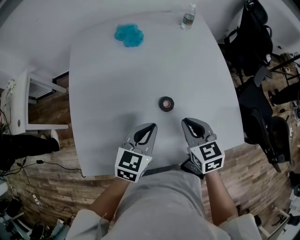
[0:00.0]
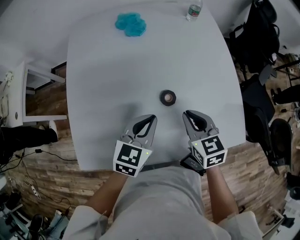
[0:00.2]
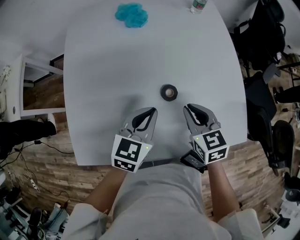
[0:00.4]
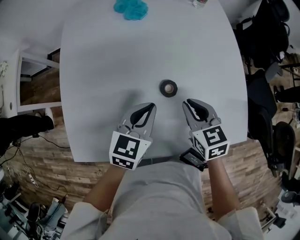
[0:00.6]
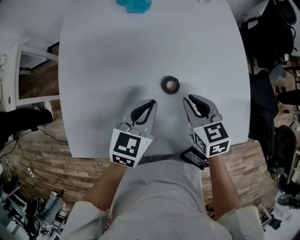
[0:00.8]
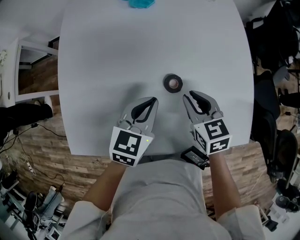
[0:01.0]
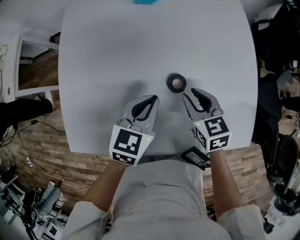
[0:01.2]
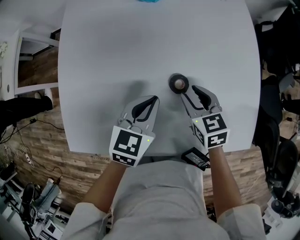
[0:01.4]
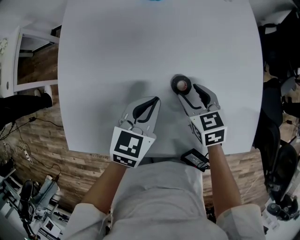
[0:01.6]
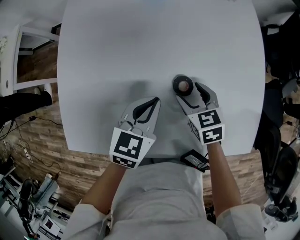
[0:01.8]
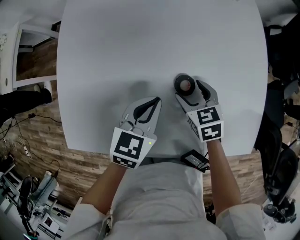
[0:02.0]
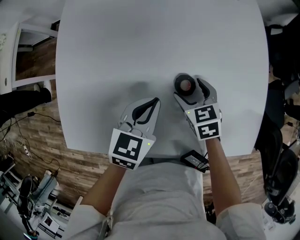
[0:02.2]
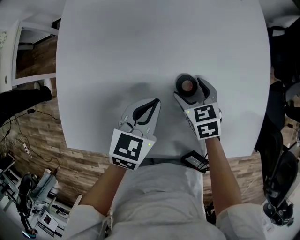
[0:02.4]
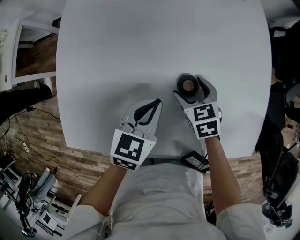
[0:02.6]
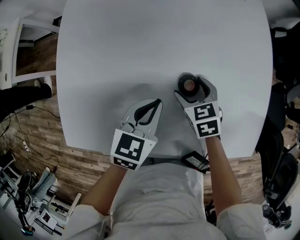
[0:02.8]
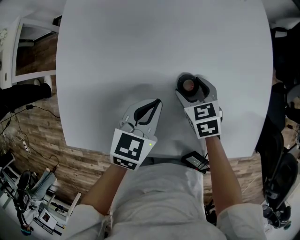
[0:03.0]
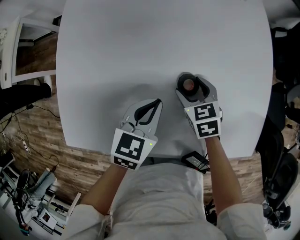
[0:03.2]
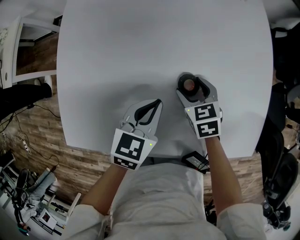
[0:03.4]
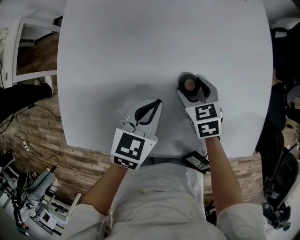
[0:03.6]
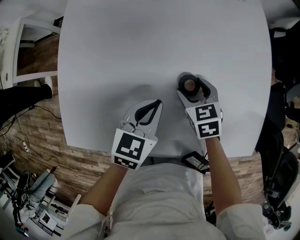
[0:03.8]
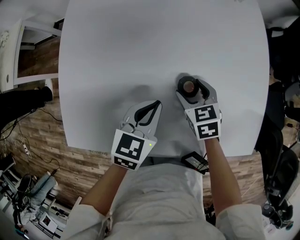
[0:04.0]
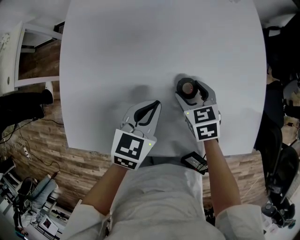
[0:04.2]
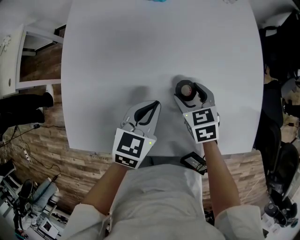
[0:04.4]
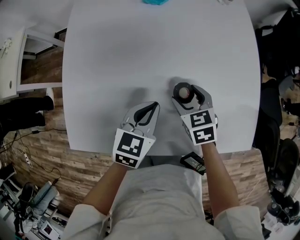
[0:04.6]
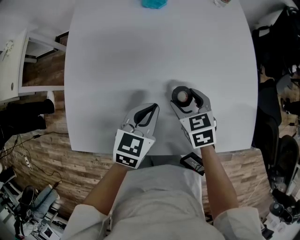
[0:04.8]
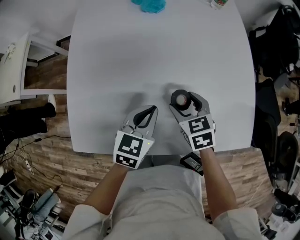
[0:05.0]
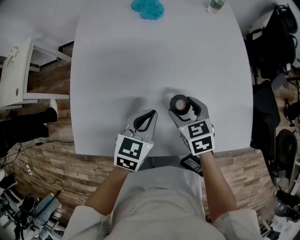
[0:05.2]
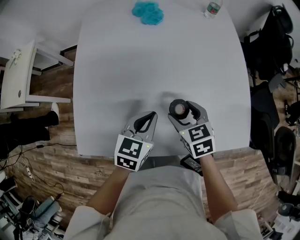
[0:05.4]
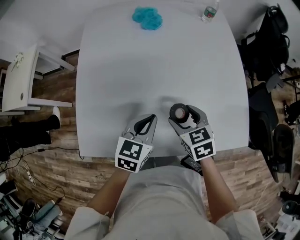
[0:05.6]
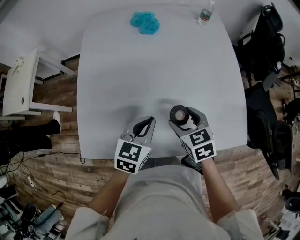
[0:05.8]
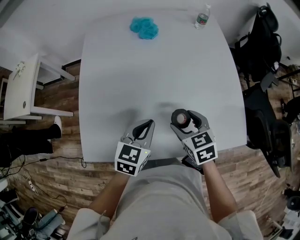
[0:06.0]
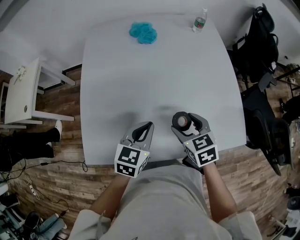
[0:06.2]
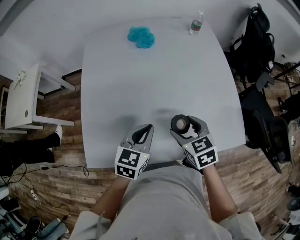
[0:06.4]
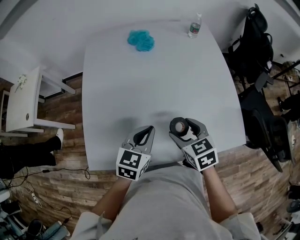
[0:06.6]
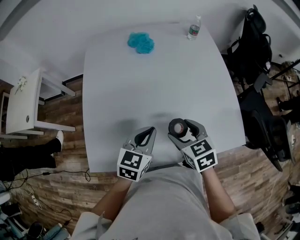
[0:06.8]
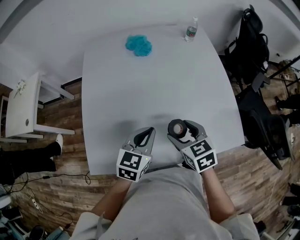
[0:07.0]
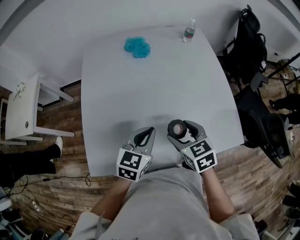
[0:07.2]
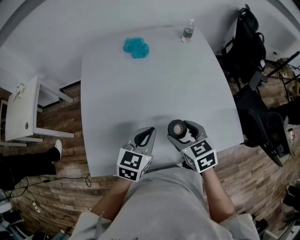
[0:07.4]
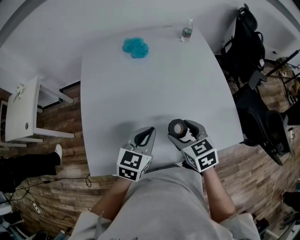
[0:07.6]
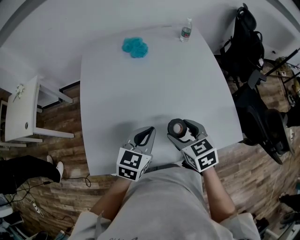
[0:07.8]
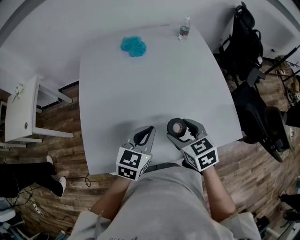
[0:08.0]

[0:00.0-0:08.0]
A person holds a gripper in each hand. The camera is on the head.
0:00.0 to 0:01.6: The left gripper travels downward and forward by roughly 10 cm, while the right gripper goes about 15 cm downward and forward, and opens its fingers.
0:01.6 to 0:03.2: The right gripper changes place by roughly 5 cm.
0:03.2 to 0:04.8: The right gripper is displaced upward by some 5 cm.
0:04.8 to 0:06.4: The grippers both shift upward and backward by roughly 10 cm.
0:06.4 to 0:08.0: The grippers move only a little.

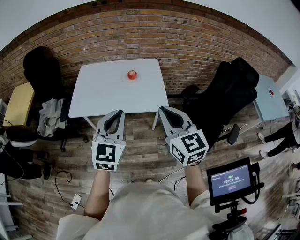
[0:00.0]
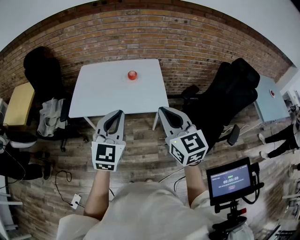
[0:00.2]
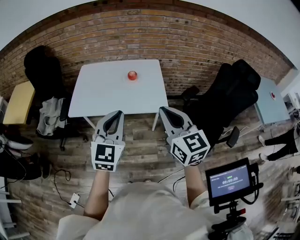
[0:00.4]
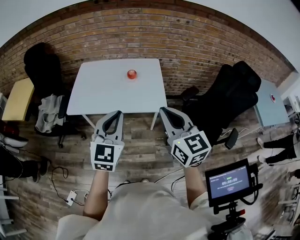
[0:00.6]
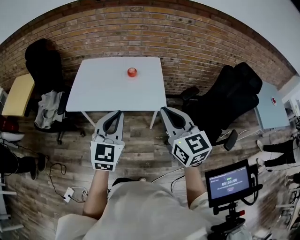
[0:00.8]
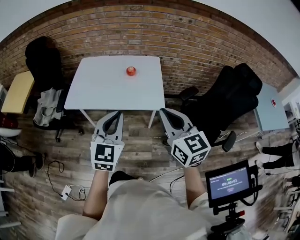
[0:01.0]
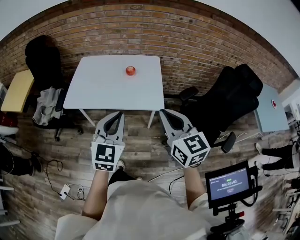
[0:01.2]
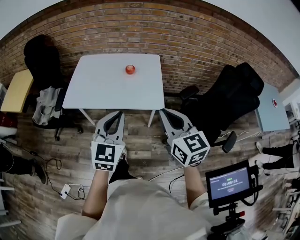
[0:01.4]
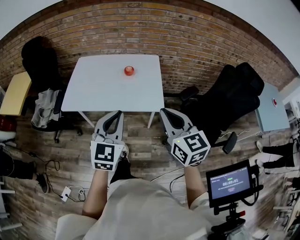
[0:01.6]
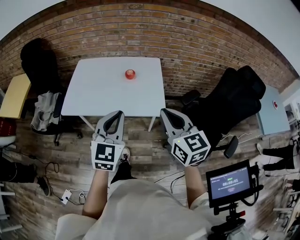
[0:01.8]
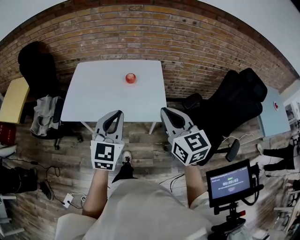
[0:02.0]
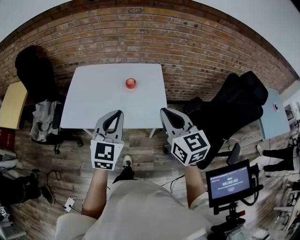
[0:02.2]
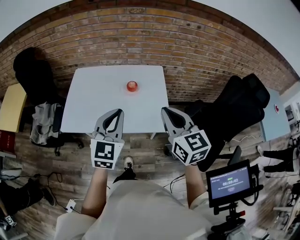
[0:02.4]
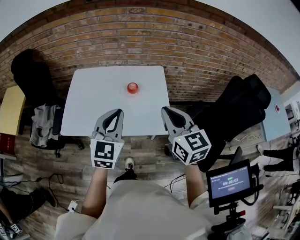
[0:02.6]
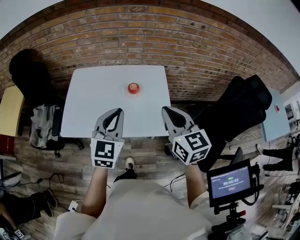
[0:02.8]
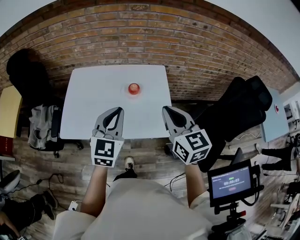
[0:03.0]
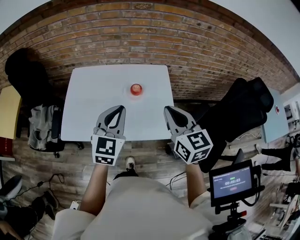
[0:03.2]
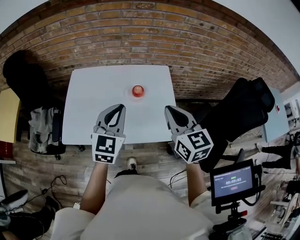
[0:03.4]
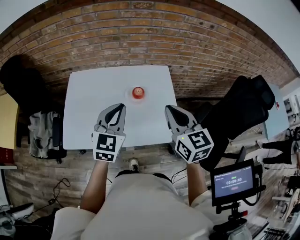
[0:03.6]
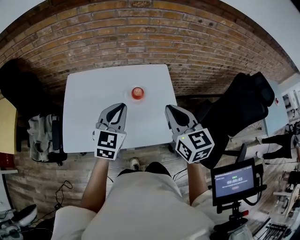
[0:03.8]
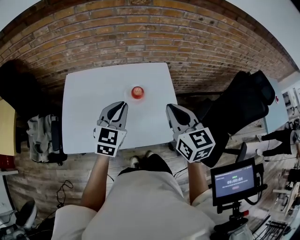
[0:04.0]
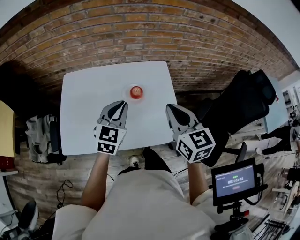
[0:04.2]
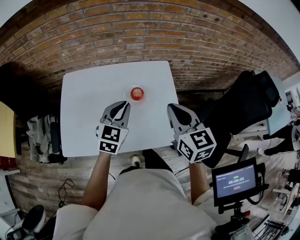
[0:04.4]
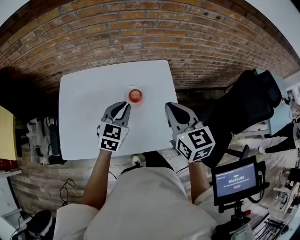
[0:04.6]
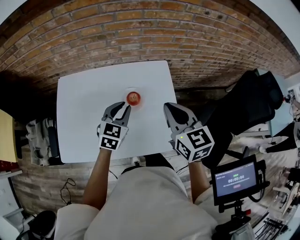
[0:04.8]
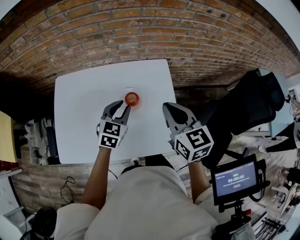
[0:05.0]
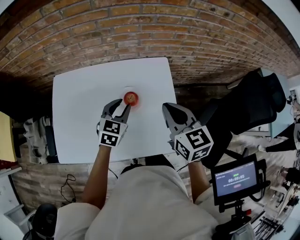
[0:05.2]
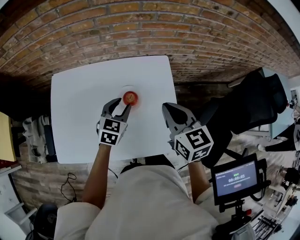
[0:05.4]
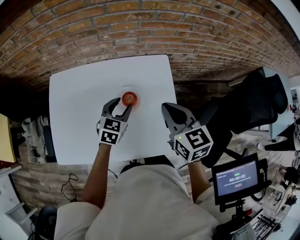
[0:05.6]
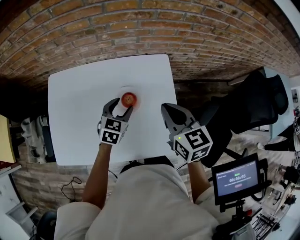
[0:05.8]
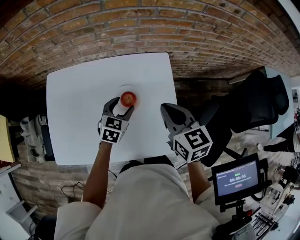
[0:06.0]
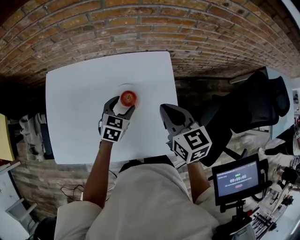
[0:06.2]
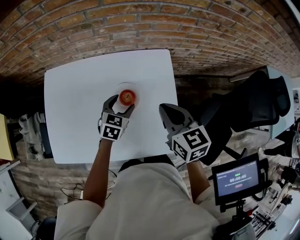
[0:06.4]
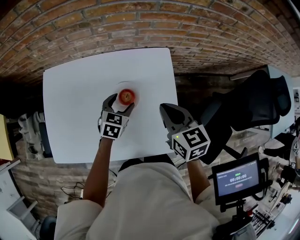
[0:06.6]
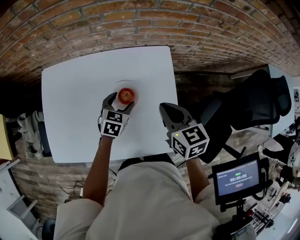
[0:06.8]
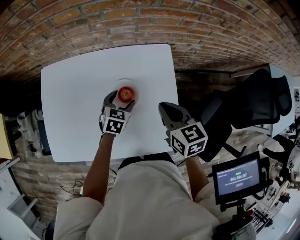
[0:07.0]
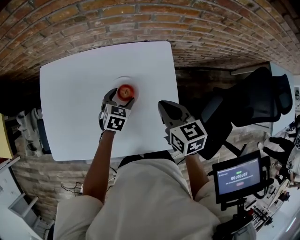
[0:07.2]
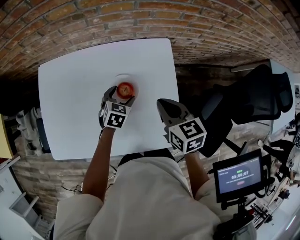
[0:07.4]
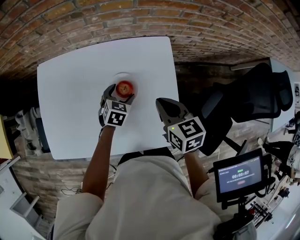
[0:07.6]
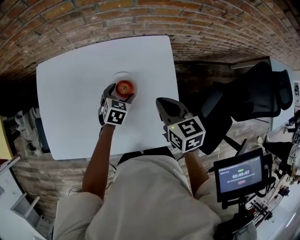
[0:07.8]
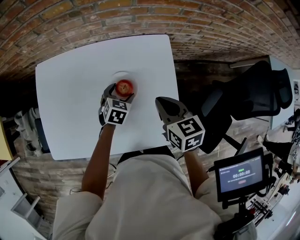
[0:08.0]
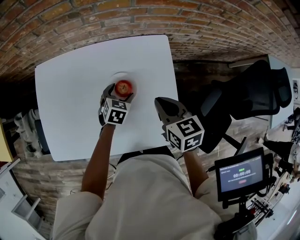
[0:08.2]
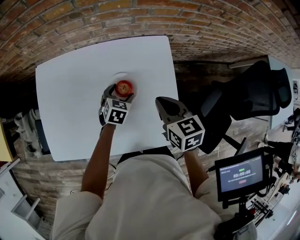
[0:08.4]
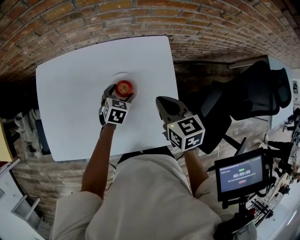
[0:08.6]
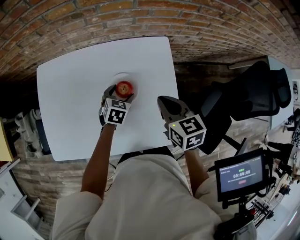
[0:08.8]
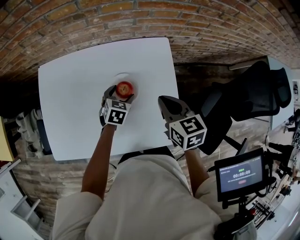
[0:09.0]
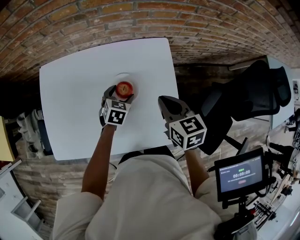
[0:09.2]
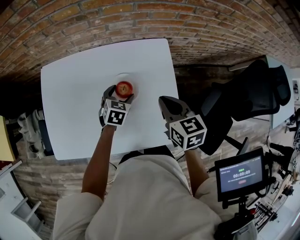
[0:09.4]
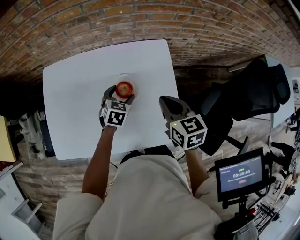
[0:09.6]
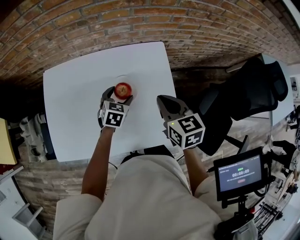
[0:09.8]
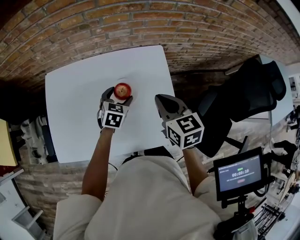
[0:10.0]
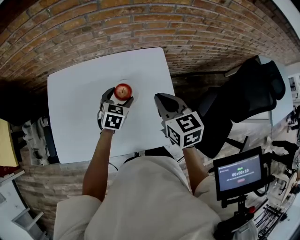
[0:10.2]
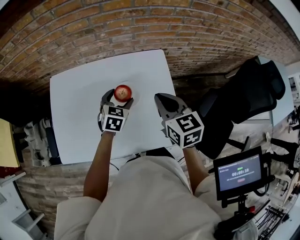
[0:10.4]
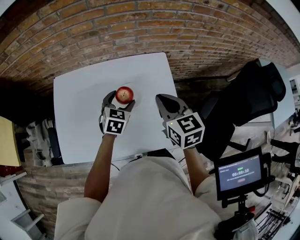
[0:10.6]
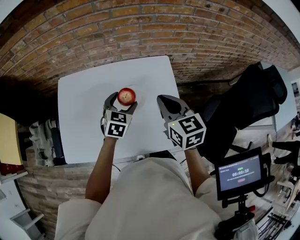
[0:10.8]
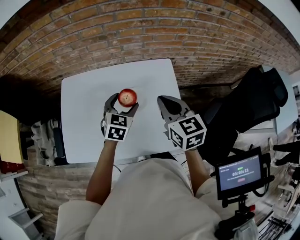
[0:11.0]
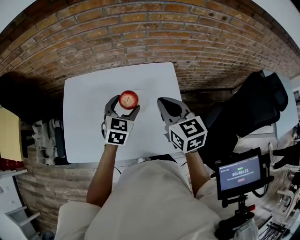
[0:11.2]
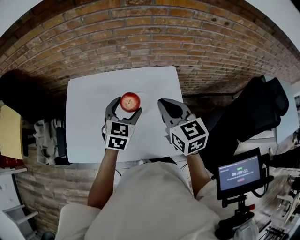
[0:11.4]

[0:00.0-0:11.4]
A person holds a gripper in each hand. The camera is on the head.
0:00.0 to 0:01.4: The grippers both shift to the right by some 5 cm.
0:01.4 to 0:02.8: Both grippers travel together forward, roughly 20 cm.
0:02.8 to 0:04.2: The right gripper goes approximately 10 cm forward; the left gripper heads forward and downward, covering roughly 15 cm.
0:04.2 to 0:05.6: The left gripper moves downward and forward, about 20 cm, and opens. The right gripper travels forward and downward by roughly 15 cm.
0:05.6 to 0:07.2: The two grippers go approximately 10 cm downward. The left gripper opens.
0:07.2 to 0:08.6: The grippers stay close to where they were, moving slightly.
0:08.6 to 0:10.0: Both grippers travel together upward, approximately 5 cm.
0:10.0 to 0:11.4: The right gripper goes approximately 10 cm upward; the left gripper moves upward, some 15 cm.

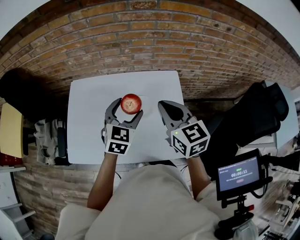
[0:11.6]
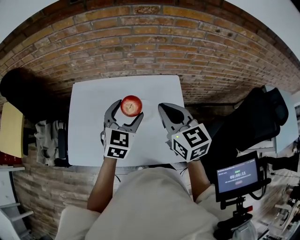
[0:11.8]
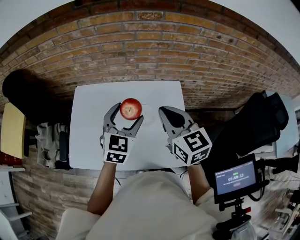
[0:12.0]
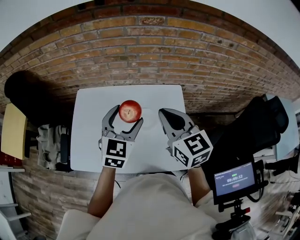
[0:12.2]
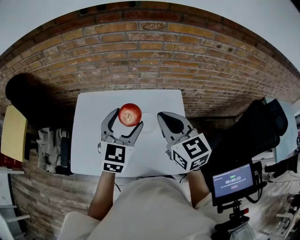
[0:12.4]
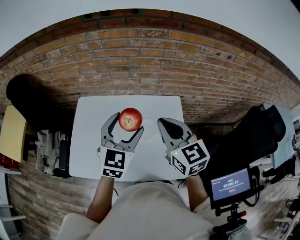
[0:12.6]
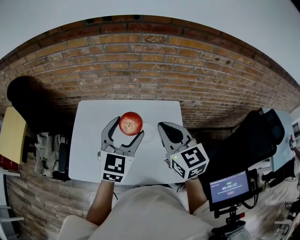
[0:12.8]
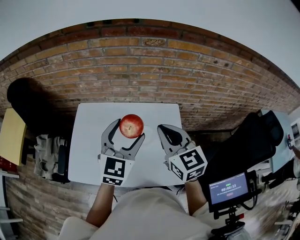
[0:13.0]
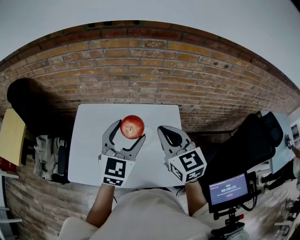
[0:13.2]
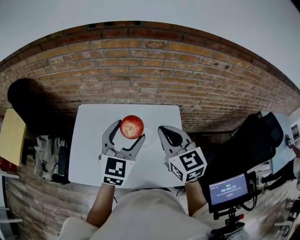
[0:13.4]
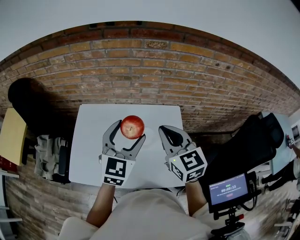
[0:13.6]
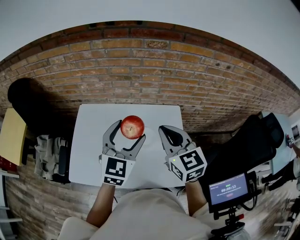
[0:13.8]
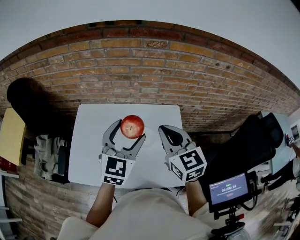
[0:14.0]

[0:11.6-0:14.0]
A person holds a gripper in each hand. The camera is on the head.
0:11.6 to 0:12.8: The left gripper travels upward by roughly 10 cm. The right gripper is displaced upward by roughly 5 cm.
0:12.8 to 0:14.0: The two grippers keep their place.

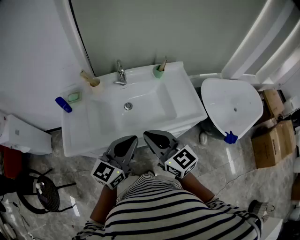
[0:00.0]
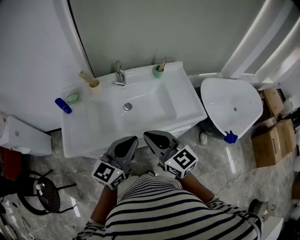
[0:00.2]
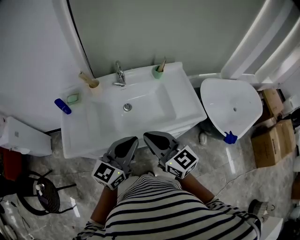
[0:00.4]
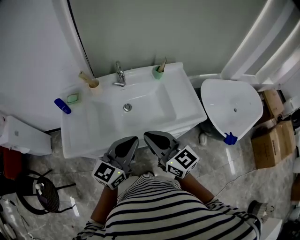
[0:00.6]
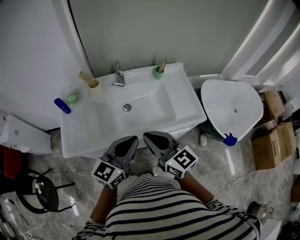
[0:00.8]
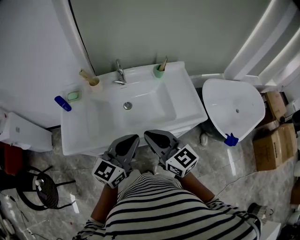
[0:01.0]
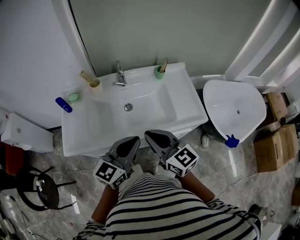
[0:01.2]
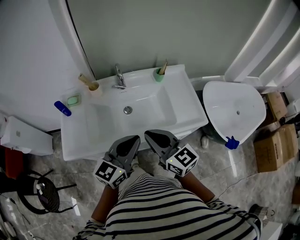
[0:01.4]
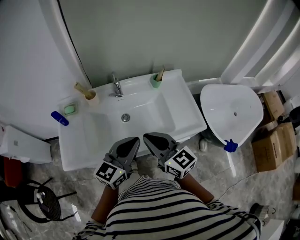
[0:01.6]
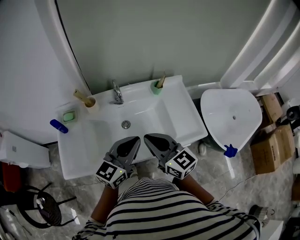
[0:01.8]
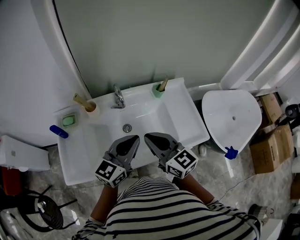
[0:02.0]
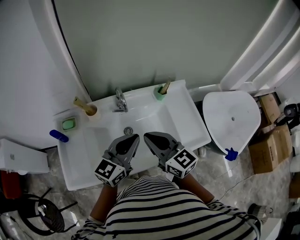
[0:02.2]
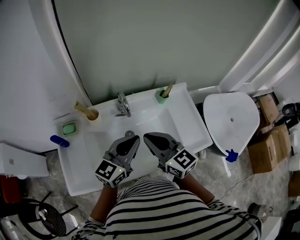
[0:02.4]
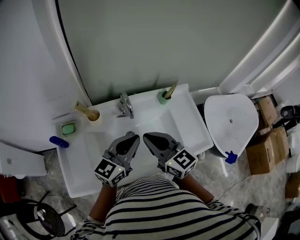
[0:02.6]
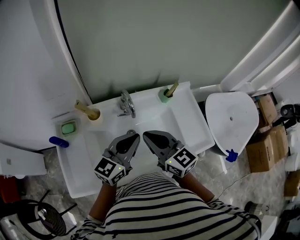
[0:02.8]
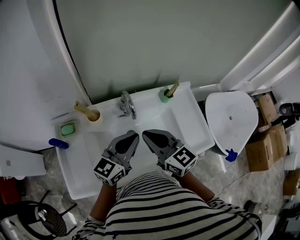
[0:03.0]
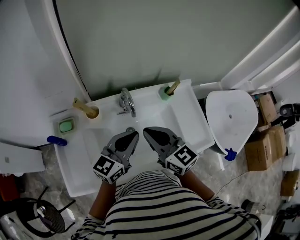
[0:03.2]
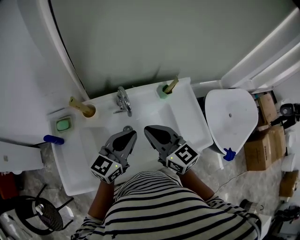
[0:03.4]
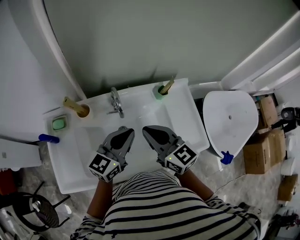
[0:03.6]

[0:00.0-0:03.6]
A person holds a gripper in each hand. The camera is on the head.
0:00.0 to 0:01.8: The two grippers go some 10 cm forward.
0:01.8 to 0:03.6: The two grippers go roughly 15 cm forward.
